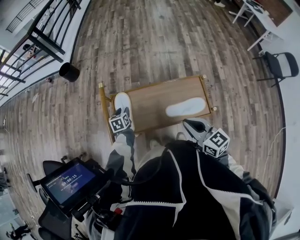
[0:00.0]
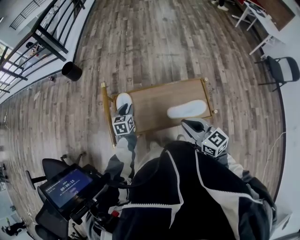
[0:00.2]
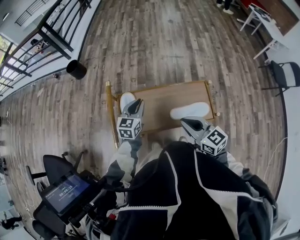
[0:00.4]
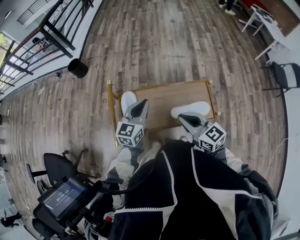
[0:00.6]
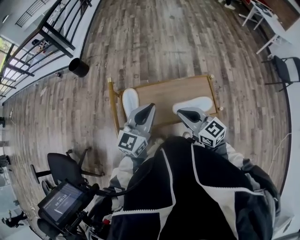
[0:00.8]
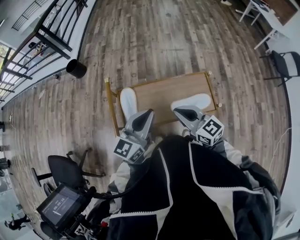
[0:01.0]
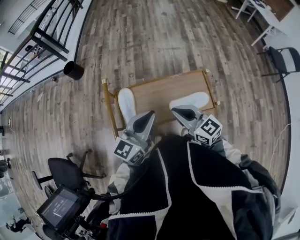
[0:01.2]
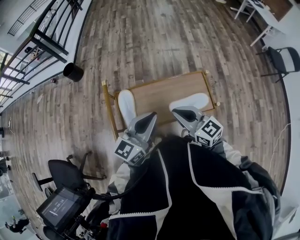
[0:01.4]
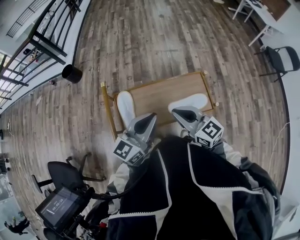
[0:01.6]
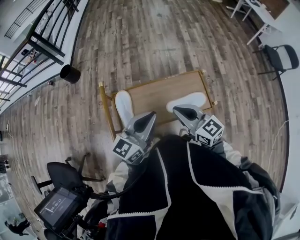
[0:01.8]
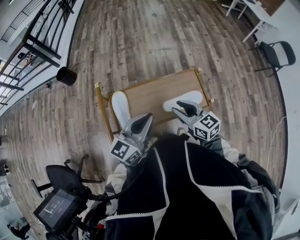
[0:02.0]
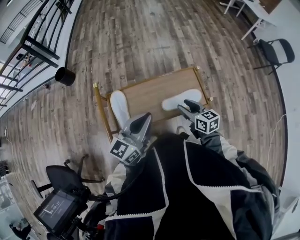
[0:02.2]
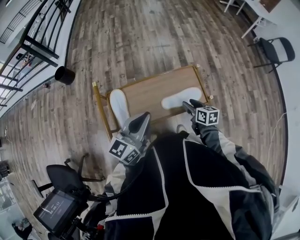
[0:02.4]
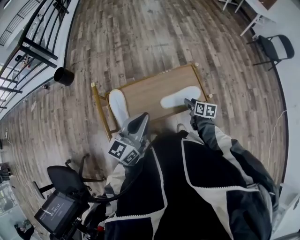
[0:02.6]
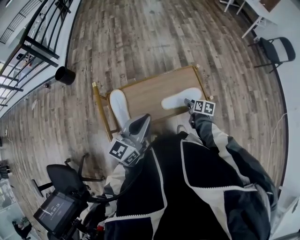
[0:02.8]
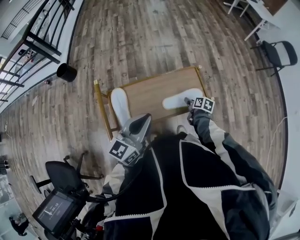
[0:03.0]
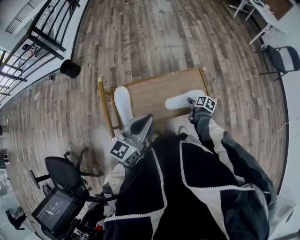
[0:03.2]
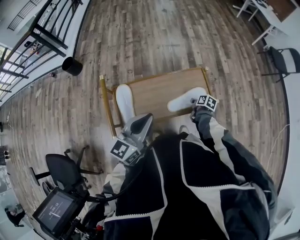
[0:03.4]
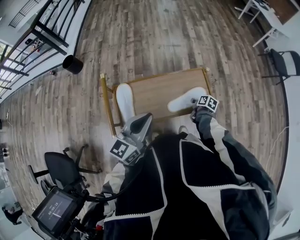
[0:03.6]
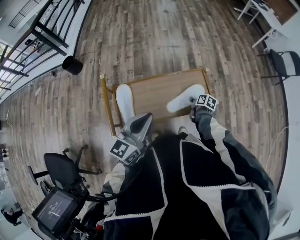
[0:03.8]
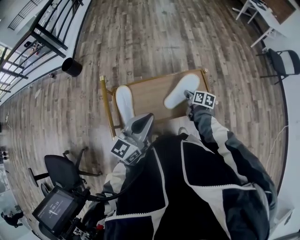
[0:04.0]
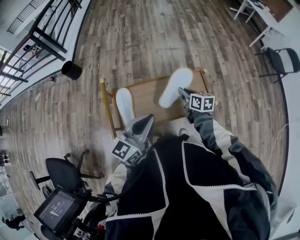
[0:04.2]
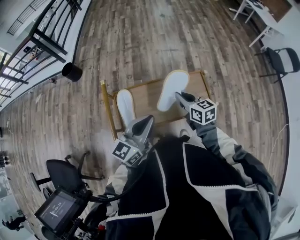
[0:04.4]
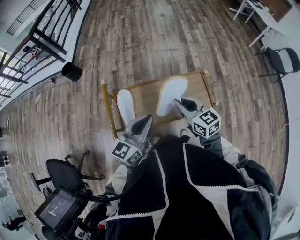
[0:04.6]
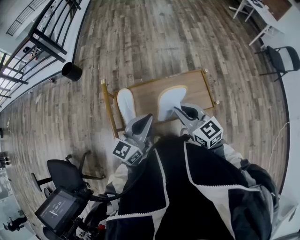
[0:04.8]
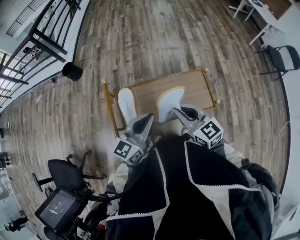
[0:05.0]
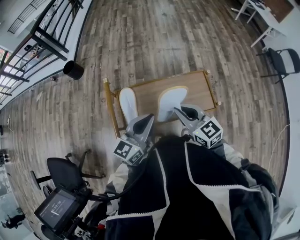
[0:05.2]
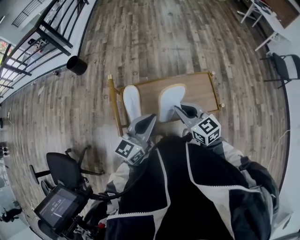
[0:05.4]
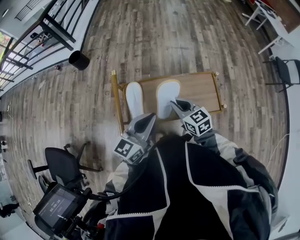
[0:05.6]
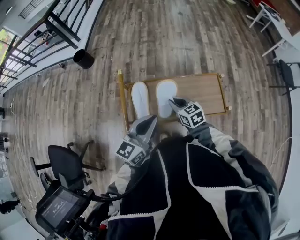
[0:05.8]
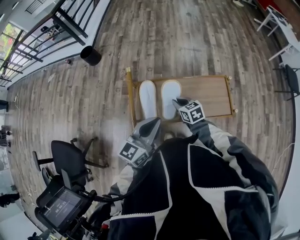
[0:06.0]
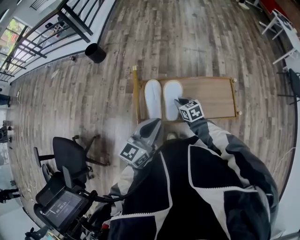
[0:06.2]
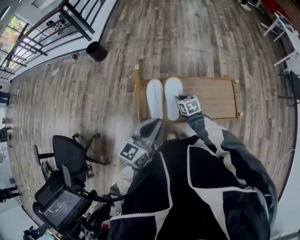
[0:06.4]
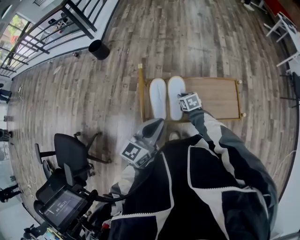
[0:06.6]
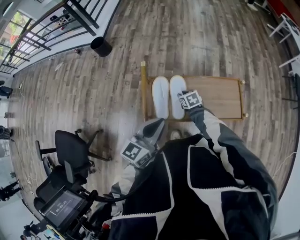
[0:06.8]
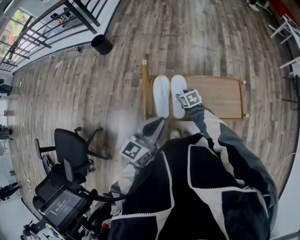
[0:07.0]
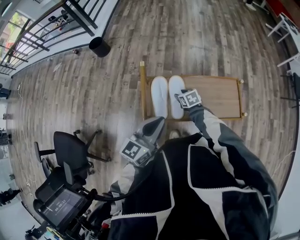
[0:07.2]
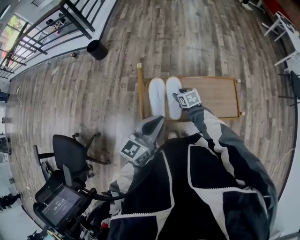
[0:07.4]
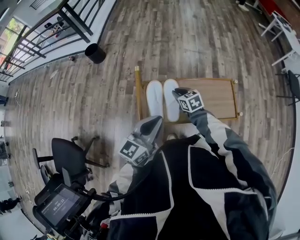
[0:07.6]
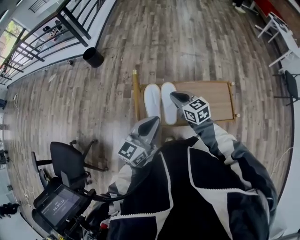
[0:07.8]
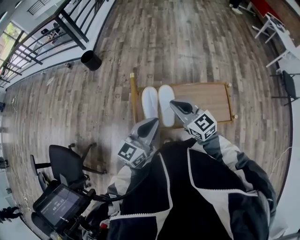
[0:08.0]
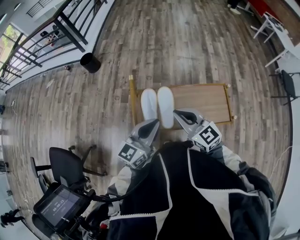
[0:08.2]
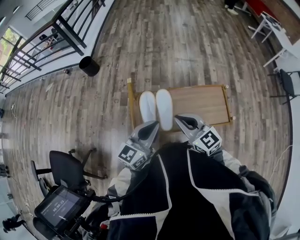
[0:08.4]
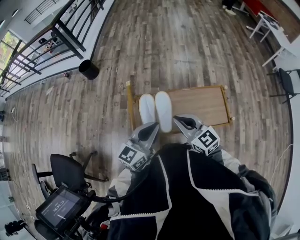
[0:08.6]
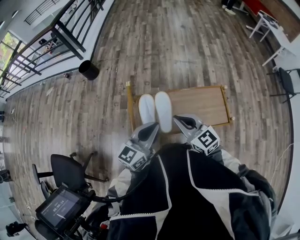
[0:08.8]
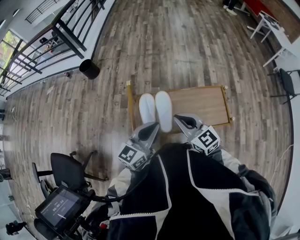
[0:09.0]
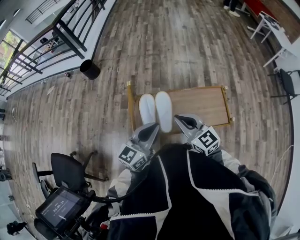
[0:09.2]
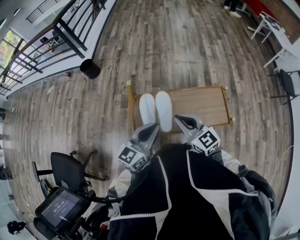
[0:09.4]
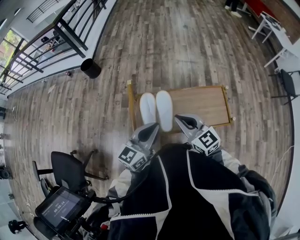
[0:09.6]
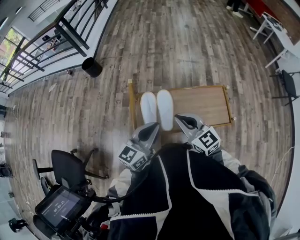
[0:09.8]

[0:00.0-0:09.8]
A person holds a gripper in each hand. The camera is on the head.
0:00.0 to 0:01.4: The right gripper moves roughly 5 cm. Meanwhile the left gripper moves upward, to the right and backward, about 40 cm, angles its fingers upward, by some 50 degrees, and closes.
0:01.4 to 0:02.8: The right gripper moves downward and to the right, some 30 cm, tips its fingers downward by some 40 degrees, and opens its fingers.
0:02.8 to 0:04.2: The right gripper goes some 20 cm upward, to the left and forward, swivels some 30 degrees, and closes.
0:04.2 to 0:05.6: The right gripper travels to the left, backward and upward by about 15 cm, and changes its angle by about 30 degrees.
0:05.6 to 0:07.0: The right gripper travels downward, forward and to the left by approximately 25 cm, changes its angle by some 30 degrees, and opens. The left gripper heads to the left, covering about 10 cm.
0:07.0 to 0:08.4: The right gripper heads upward and backward, covering approximately 30 cm, tips its fingers upward by roughly 40 degrees, and closes.
0:08.4 to 0:09.8: The grippers stay close to where they were, moving slightly.

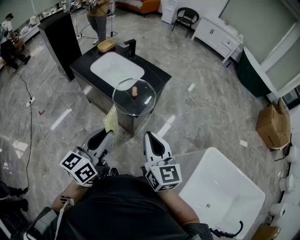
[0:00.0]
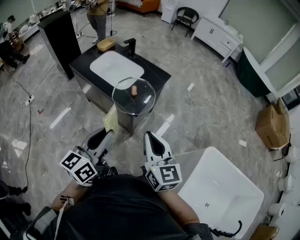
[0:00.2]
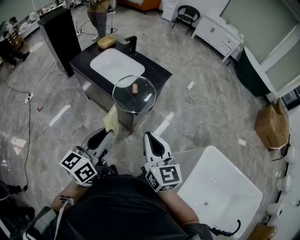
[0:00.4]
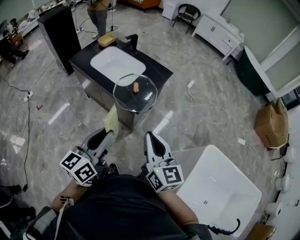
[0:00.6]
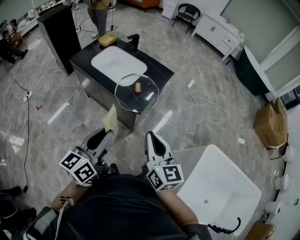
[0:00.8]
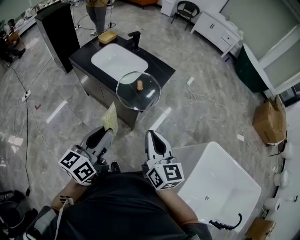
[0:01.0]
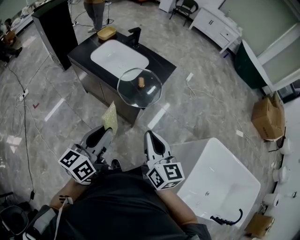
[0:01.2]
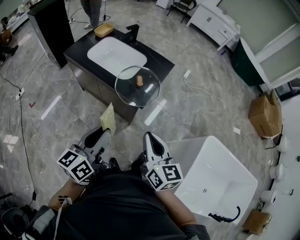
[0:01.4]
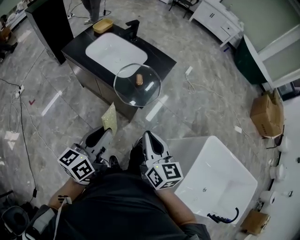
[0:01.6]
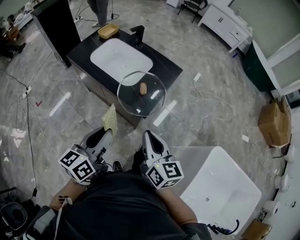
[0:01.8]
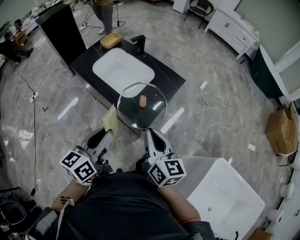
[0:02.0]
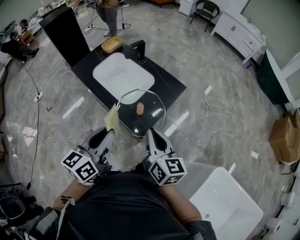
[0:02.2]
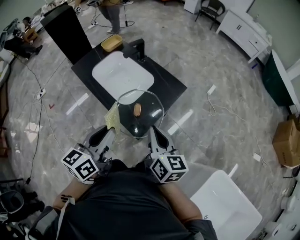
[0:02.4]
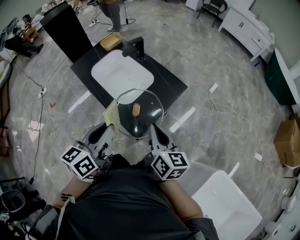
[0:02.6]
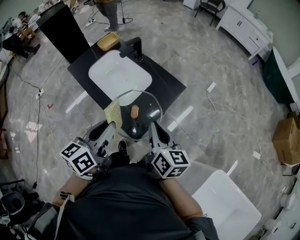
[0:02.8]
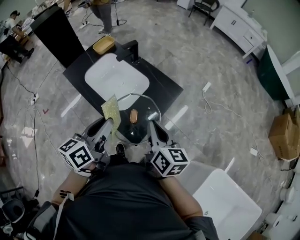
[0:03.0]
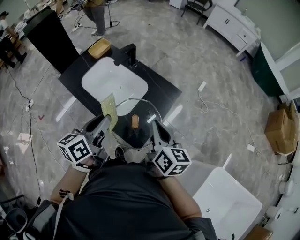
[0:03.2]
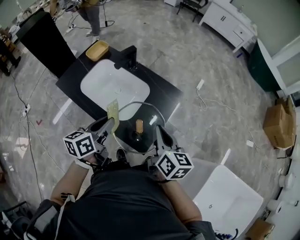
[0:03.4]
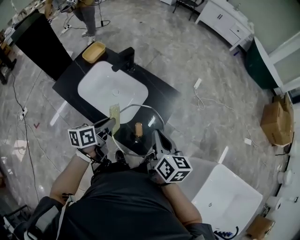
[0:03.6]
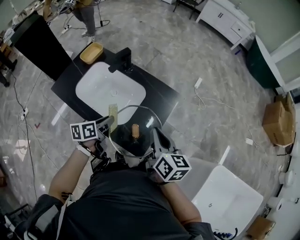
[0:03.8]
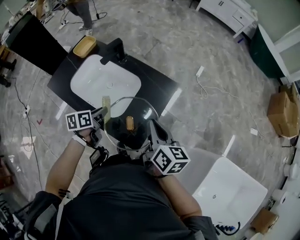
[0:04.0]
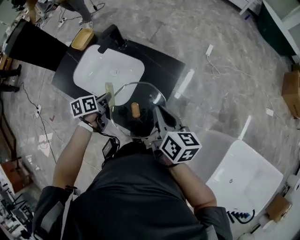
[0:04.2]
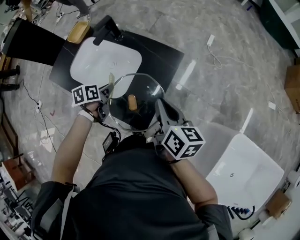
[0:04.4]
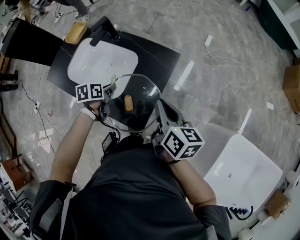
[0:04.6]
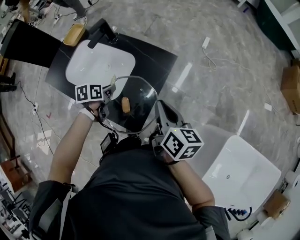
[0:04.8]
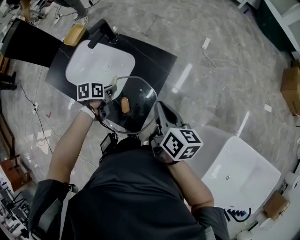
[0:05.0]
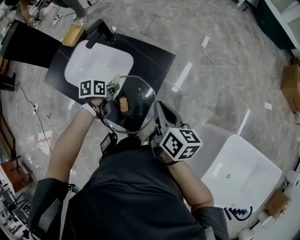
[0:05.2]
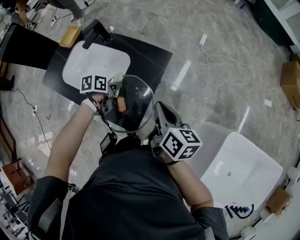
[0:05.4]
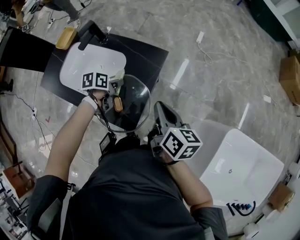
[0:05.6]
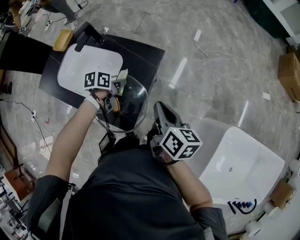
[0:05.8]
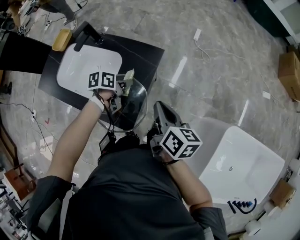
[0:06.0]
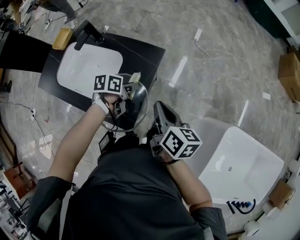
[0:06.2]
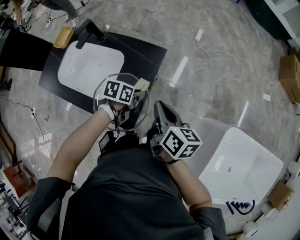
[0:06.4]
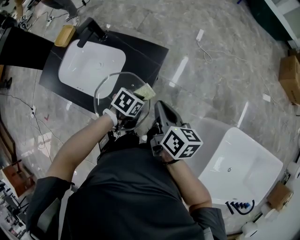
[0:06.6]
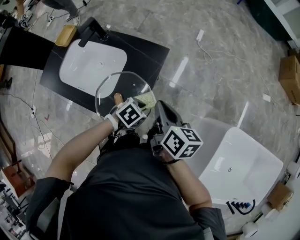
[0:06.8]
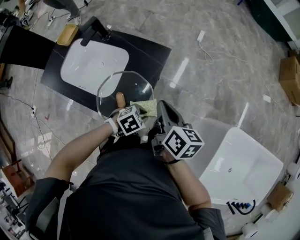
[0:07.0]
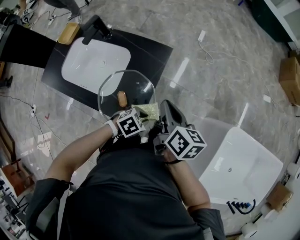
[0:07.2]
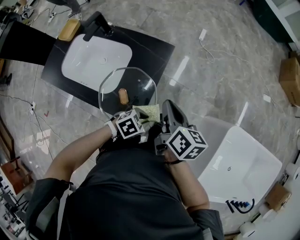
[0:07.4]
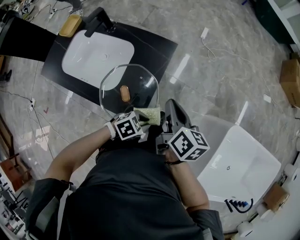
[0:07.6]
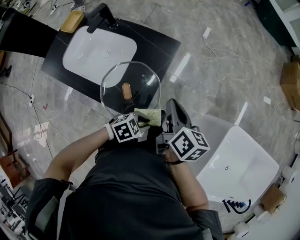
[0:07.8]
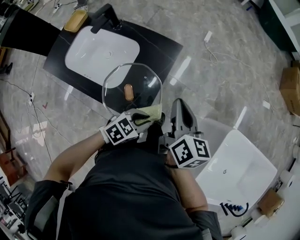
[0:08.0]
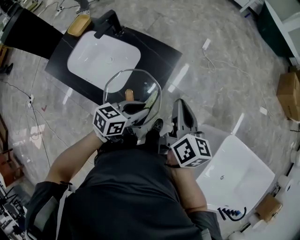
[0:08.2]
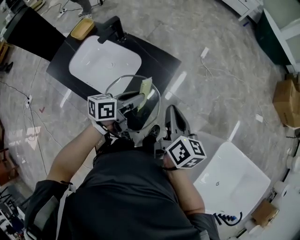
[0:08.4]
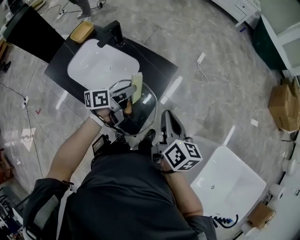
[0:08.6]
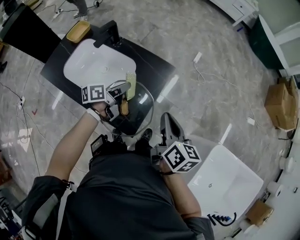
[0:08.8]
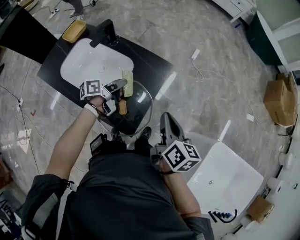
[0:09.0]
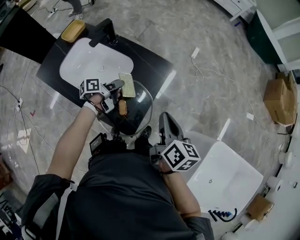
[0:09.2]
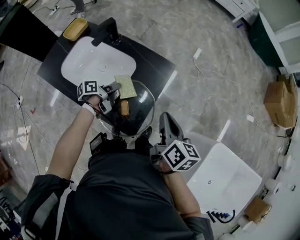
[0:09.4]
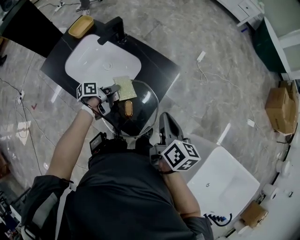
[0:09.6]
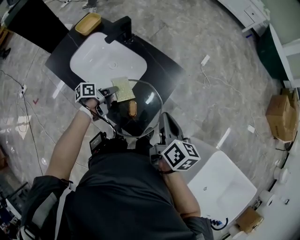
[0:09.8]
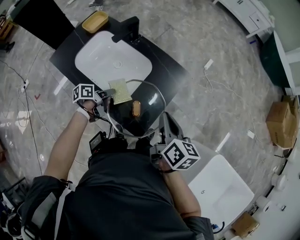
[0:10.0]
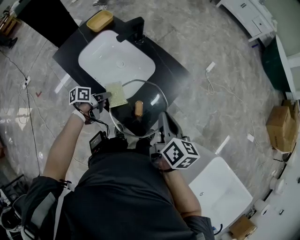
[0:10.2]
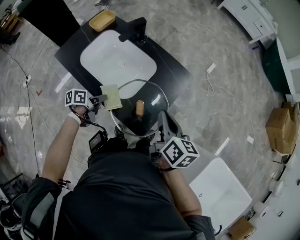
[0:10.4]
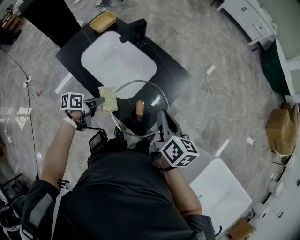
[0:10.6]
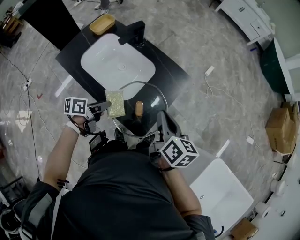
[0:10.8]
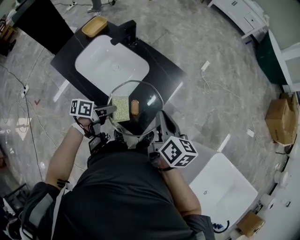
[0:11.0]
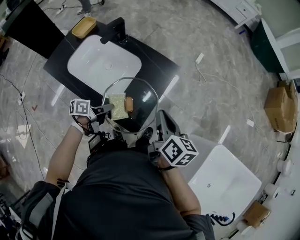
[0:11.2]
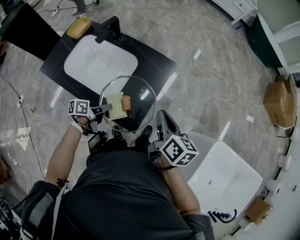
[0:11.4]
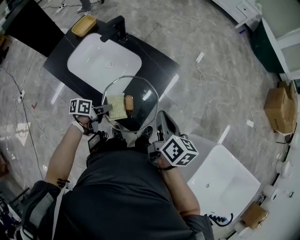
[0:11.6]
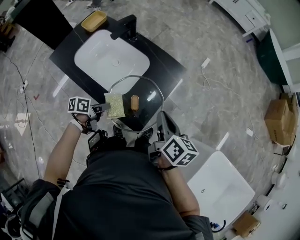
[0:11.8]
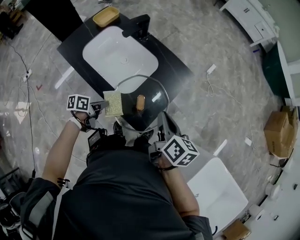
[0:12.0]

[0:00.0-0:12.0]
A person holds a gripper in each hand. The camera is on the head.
0:00.0 to 0:01.6: The right gripper goes about 10 cm downward and to the left, while the left gripper moves to the left and downward, some 10 cm.
0:01.6 to 0:03.0: The grippers both shift forward by roughly 25 cm.
0:03.0 to 0:04.4: The right gripper goes approximately 10 cm downward and forward; the left gripper travels downward and forward by approximately 30 cm, and tips its fingers downward by some 40 degrees.
0:04.4 to 0:06.0: The right gripper goes some 10 cm to the right; the left gripper goes roughly 20 cm to the right, and rotates approximately 20 degrees.
0:06.0 to 0:07.6: The left gripper heads backward and to the right, covering some 25 cm, and twists about 60 degrees clockwise, seen from behind.
0:07.6 to 0:09.0: The left gripper moves about 30 cm, and points its fingers about 40 degrees further upward.
0:09.0 to 0:10.4: The left gripper moves to the left, backward and downward, approximately 25 cm, and rotates some 20 degrees, while the right gripper moves to the left, about 10 cm.
0:10.4 to 0:12.0: The left gripper travels to the right and back again, approximately 10 cm each way.

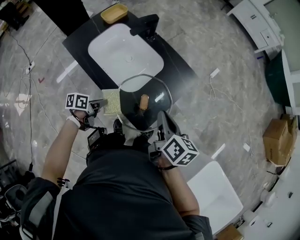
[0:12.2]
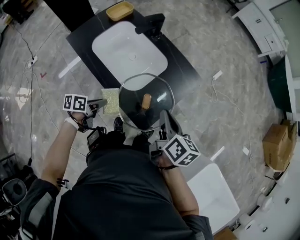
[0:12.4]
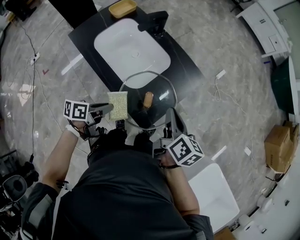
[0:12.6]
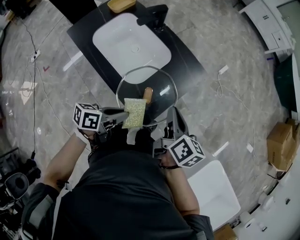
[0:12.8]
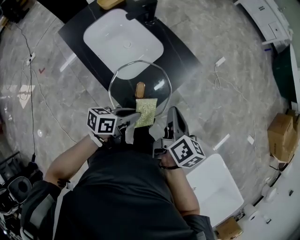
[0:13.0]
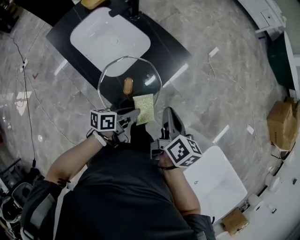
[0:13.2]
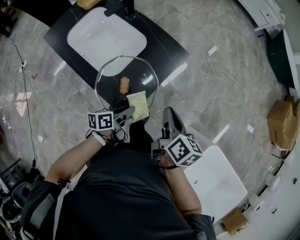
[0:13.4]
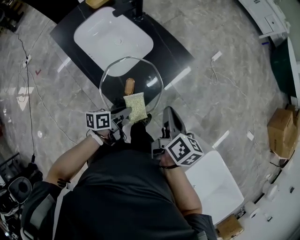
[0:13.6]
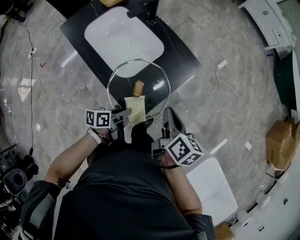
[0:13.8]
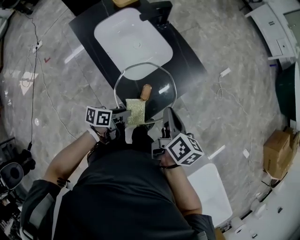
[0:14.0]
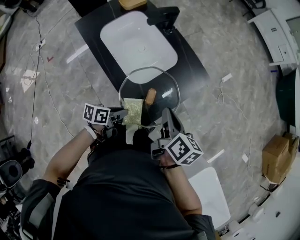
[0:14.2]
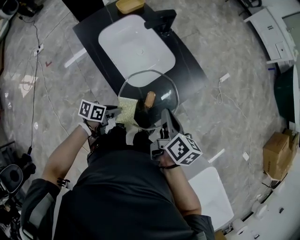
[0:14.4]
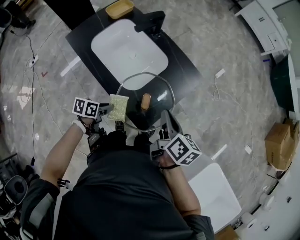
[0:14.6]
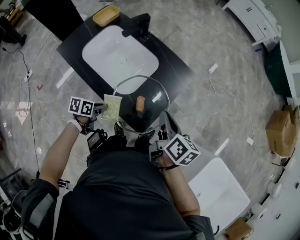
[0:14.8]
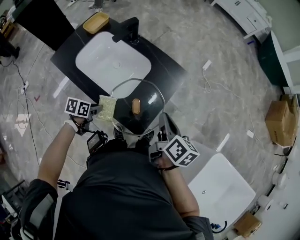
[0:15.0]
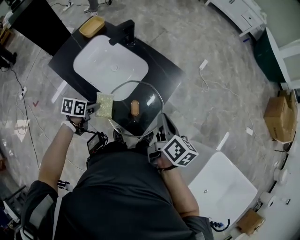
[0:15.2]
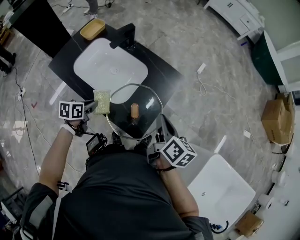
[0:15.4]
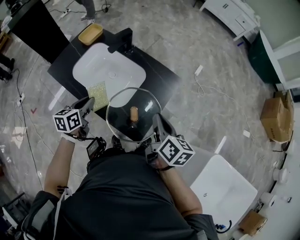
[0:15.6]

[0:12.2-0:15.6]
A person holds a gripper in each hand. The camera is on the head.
0:12.2 to 0:13.8: The right gripper is displaced to the right by about 5 cm; the left gripper goes about 20 cm to the right.
0:13.8 to 0:15.6: The right gripper goes approximately 5 cm to the left, while the left gripper is displaced to the left, upward and forward by approximately 25 cm, and changes its angle by roughly 30 degrees.
